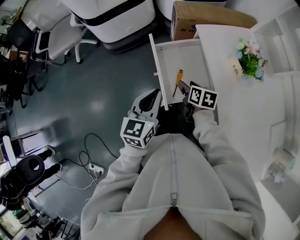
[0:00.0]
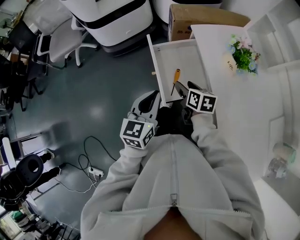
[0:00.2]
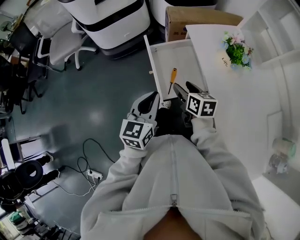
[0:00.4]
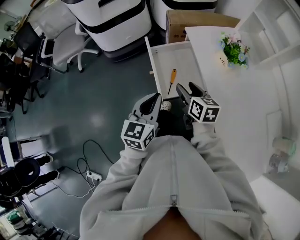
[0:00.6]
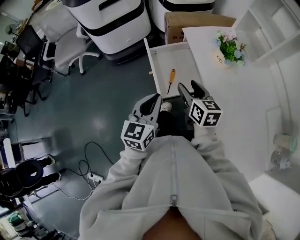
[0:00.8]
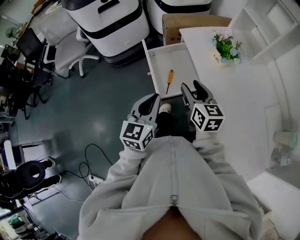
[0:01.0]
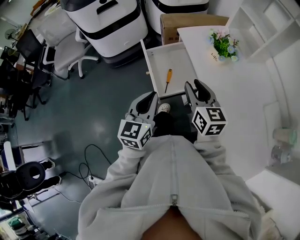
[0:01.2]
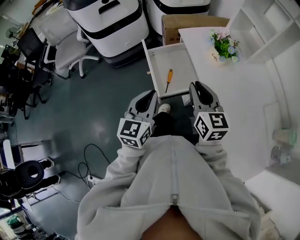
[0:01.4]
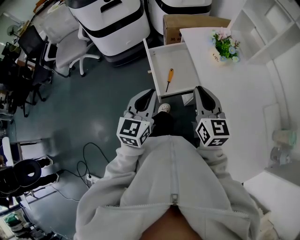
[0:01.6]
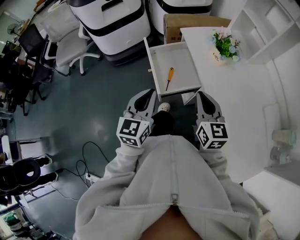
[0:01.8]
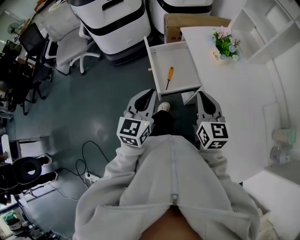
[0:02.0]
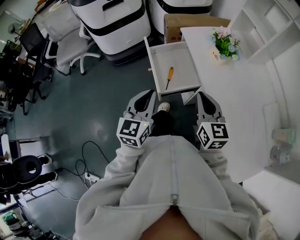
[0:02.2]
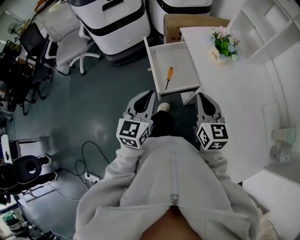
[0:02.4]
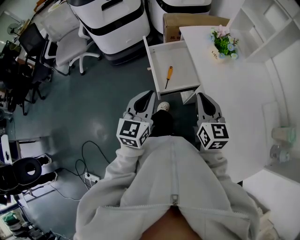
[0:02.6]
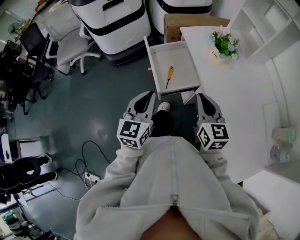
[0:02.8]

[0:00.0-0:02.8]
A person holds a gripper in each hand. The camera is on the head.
0:00.0 to 0:01.4: The right gripper heads upward and backward, covering approximately 25 cm, angles its fingers upward, by roughly 30 degrees, and closes. The left gripper goes approximately 10 cm backward and upward.
0:01.4 to 0:02.8: The right gripper is displaced backward by some 5 cm.

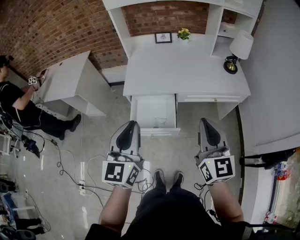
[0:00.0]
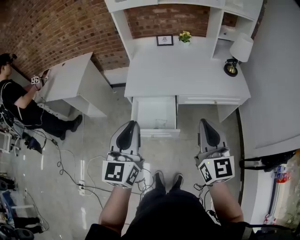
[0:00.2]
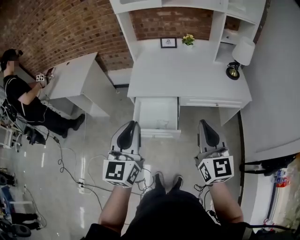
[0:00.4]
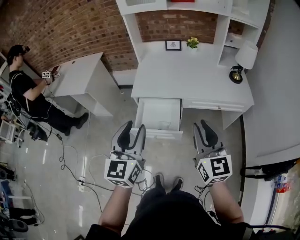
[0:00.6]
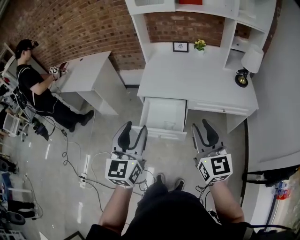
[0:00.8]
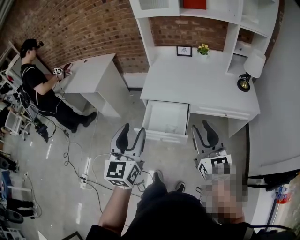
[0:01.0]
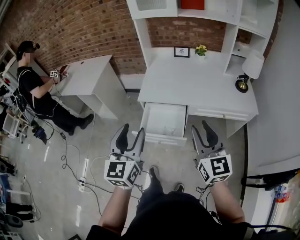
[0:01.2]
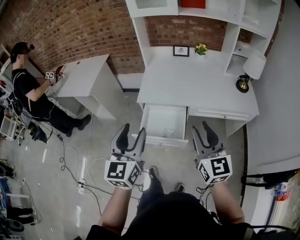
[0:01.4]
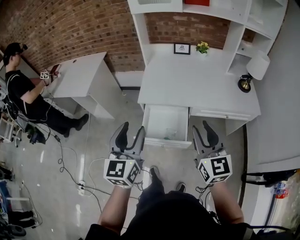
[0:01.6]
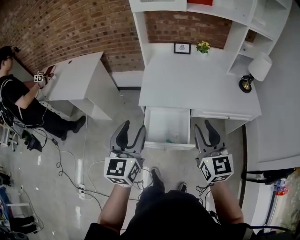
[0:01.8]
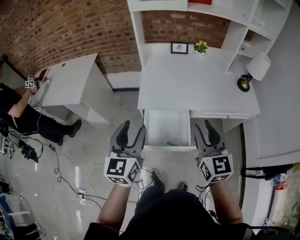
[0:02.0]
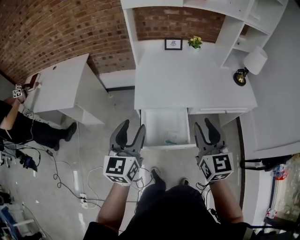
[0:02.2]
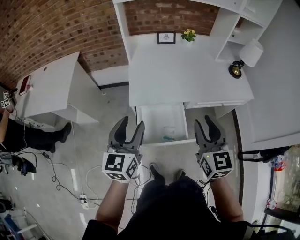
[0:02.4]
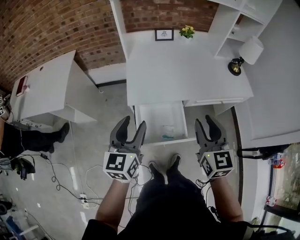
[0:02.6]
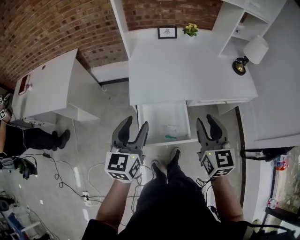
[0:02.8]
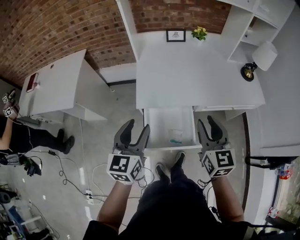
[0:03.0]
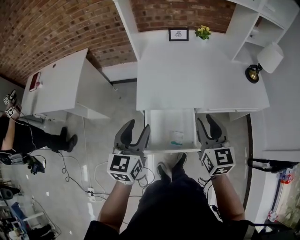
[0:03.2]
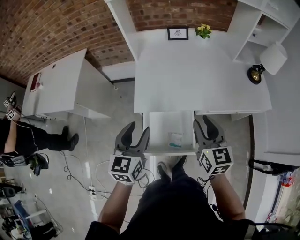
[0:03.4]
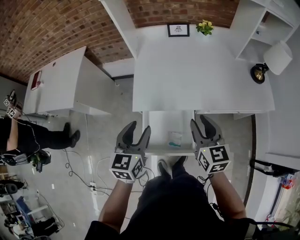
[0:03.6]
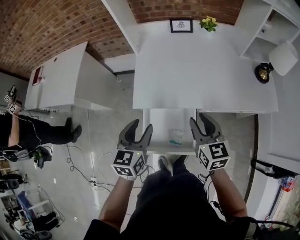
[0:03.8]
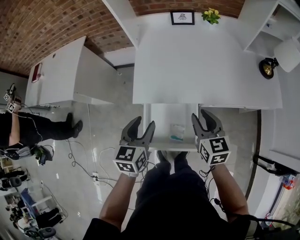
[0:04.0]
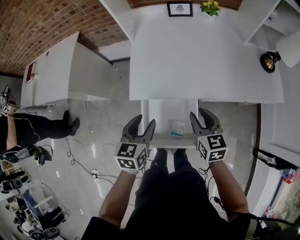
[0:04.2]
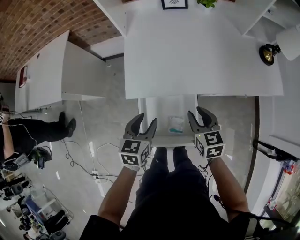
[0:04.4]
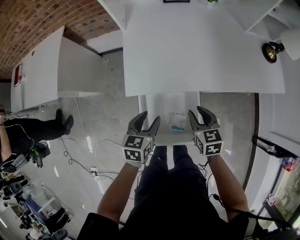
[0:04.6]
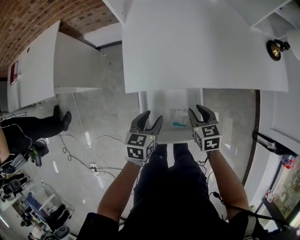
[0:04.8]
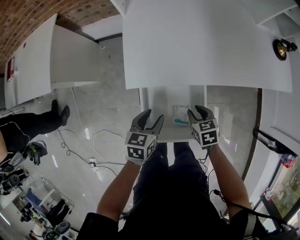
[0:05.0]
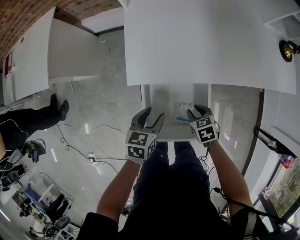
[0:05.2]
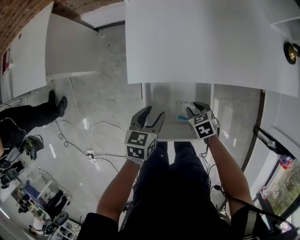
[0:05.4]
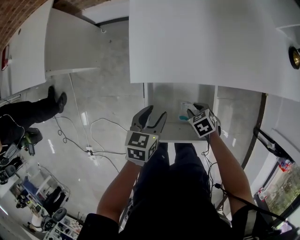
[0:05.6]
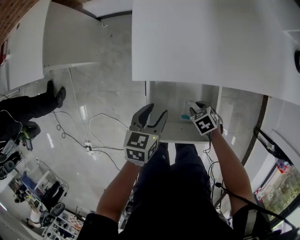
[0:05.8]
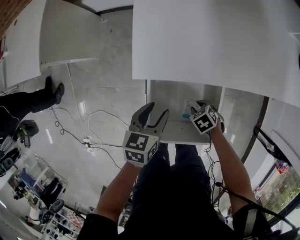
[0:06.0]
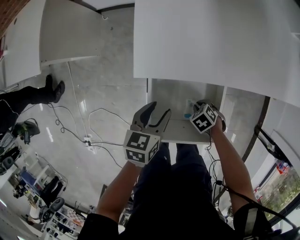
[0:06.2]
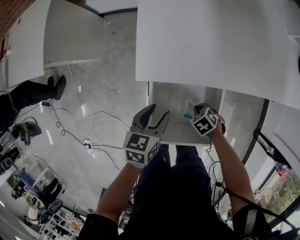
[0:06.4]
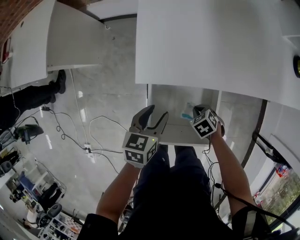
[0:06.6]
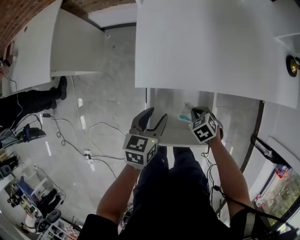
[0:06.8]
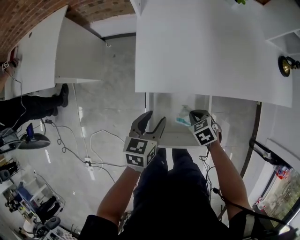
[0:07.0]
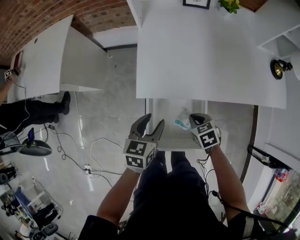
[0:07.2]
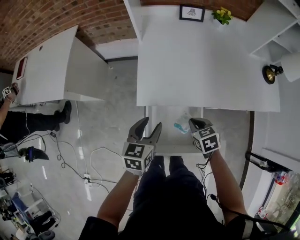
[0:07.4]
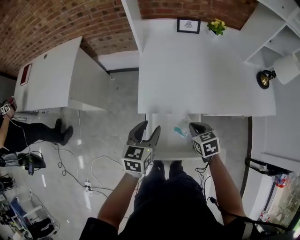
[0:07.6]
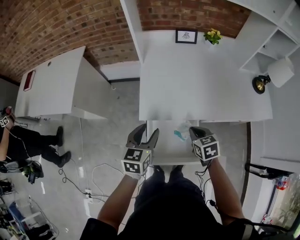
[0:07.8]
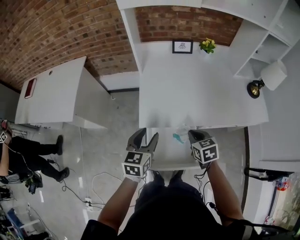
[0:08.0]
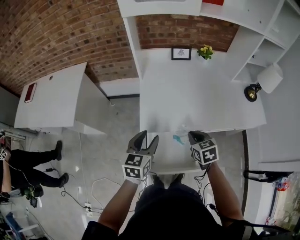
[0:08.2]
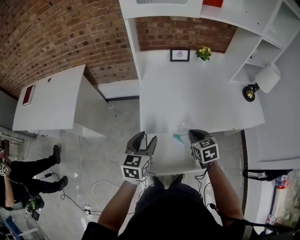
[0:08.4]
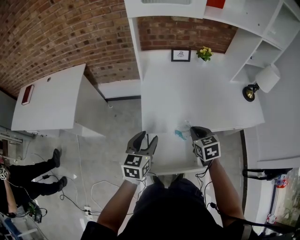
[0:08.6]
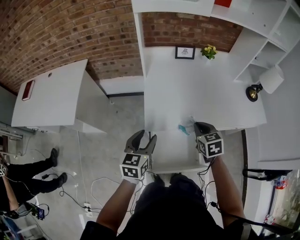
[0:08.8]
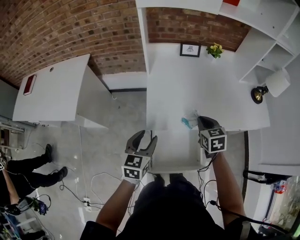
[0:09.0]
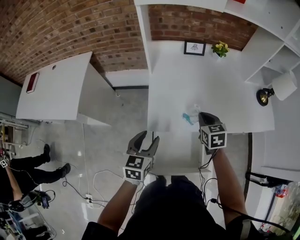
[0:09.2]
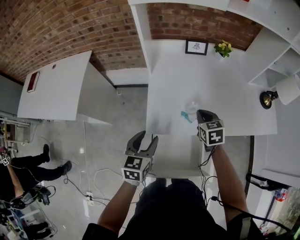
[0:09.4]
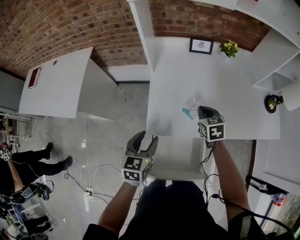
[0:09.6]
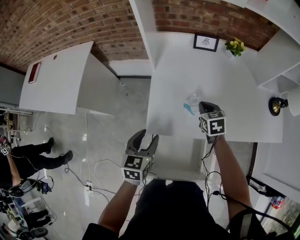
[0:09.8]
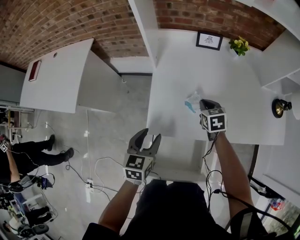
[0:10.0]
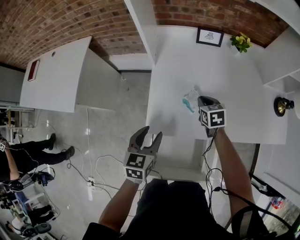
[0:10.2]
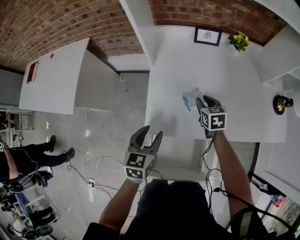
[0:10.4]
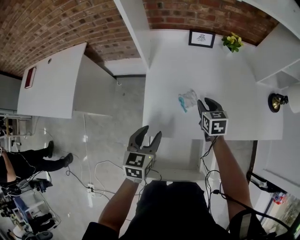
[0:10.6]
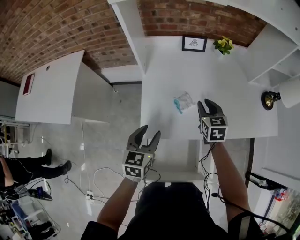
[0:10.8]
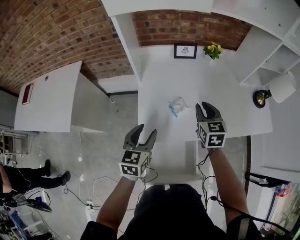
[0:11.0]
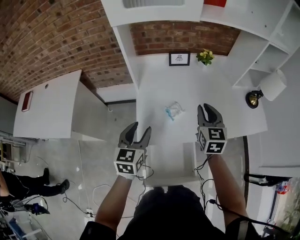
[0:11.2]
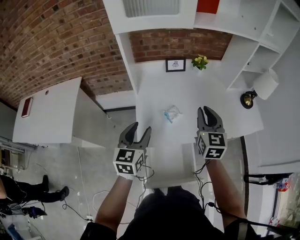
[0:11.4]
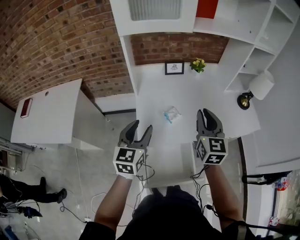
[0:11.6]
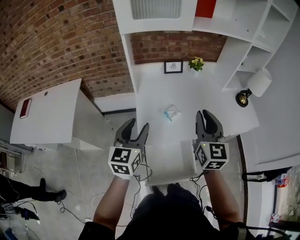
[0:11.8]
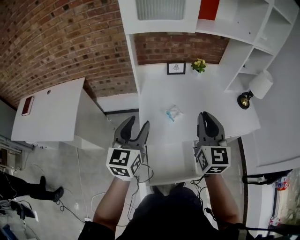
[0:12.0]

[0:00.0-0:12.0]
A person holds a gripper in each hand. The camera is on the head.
0:00.0 to 0:01.6: The left gripper goes approximately 10 cm to the left, and opens up; the right gripper goes about 10 cm to the left and forward, and opens up.
0:01.6 to 0:03.0: The grippers both shift forward, downward and to the left by some 15 cm.
0:03.0 to 0:04.4: The right gripper moves downward and forward, some 25 cm, and turns by approximately 20 degrees. The left gripper is displaced downward by some 20 cm, and turns by roughly 20 degrees.
0:04.4 to 0:06.0: The right gripper heads downward, covering approximately 30 cm, and angles its fingers downward, by roughly 40 degrees. Meanwhile the left gripper shifts approximately 15 cm downward.
0:06.0 to 0:07.6: Both grippers move upward, some 20 cm. The right gripper rotates about 40 degrees, and closes up.
0:07.6 to 0:09.0: The right gripper goes roughly 15 cm upward and forward. The left gripper heads to the left, covering some 5 cm.
0:09.0 to 0:10.4: The right gripper shifts approximately 20 cm forward and downward, and opens its fingers. The left gripper goes some 10 cm forward and downward.
0:10.4 to 0:12.0: The right gripper goes roughly 40 cm upward and backward, points its fingers some 40 degrees further upward, and closes. The left gripper is displaced upward by approximately 25 cm, and swivels about 30 degrees.

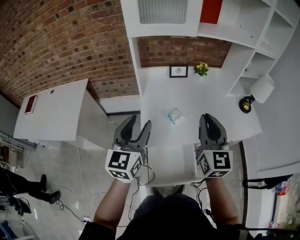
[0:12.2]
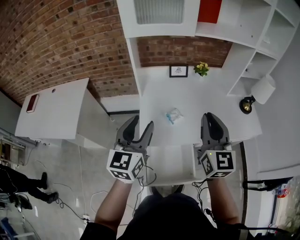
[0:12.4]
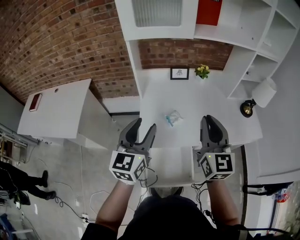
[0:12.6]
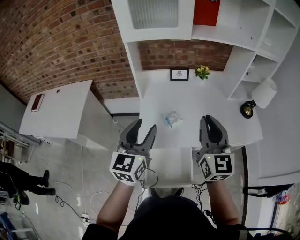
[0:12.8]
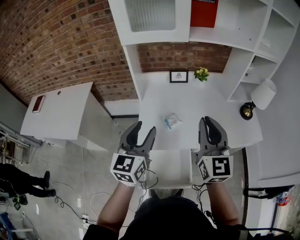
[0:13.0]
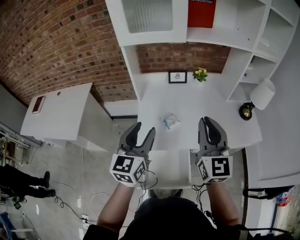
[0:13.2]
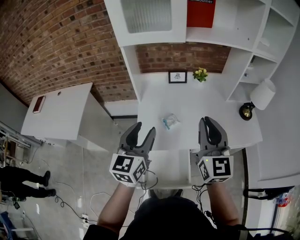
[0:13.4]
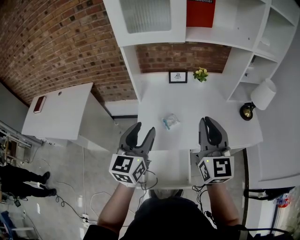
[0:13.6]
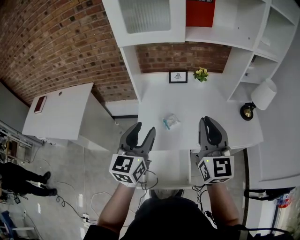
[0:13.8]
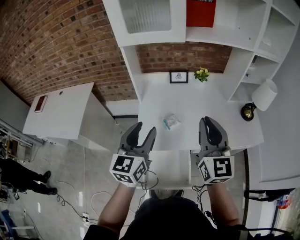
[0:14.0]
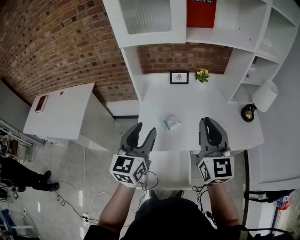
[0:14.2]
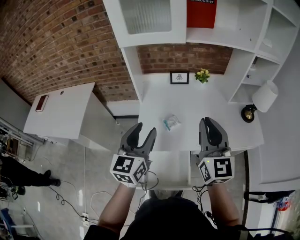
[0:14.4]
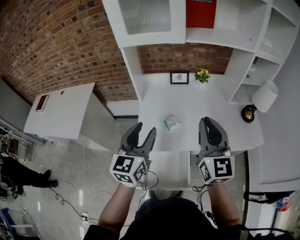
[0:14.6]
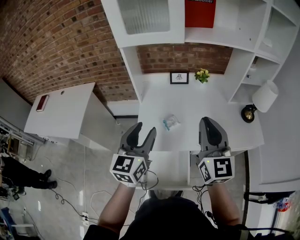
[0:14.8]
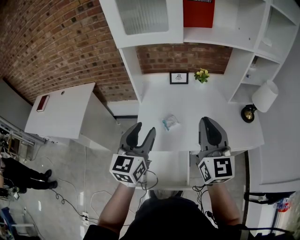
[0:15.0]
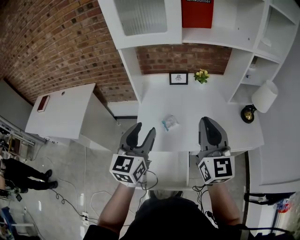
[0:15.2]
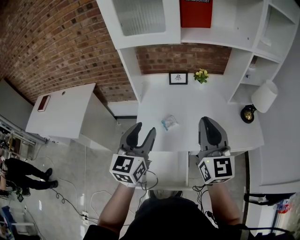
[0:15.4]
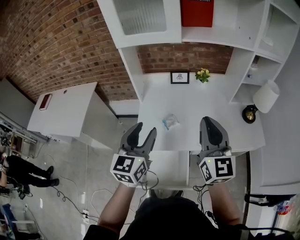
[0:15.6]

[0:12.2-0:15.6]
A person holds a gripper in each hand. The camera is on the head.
0:12.2 to 0:13.8: The grippers both shift to the right by about 10 cm.
0:13.8 to 0:15.6: There are only small adjustments of the grippers.

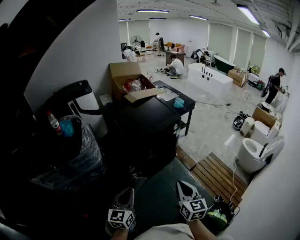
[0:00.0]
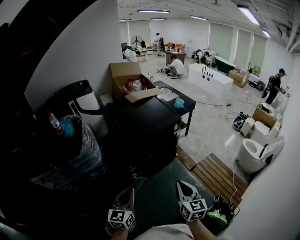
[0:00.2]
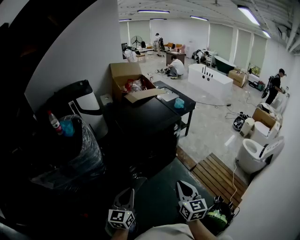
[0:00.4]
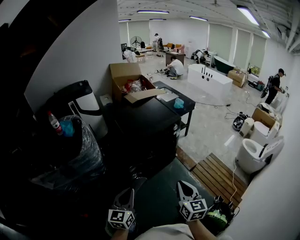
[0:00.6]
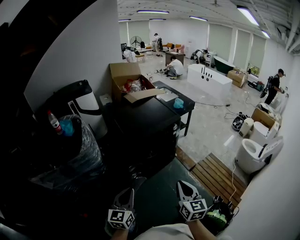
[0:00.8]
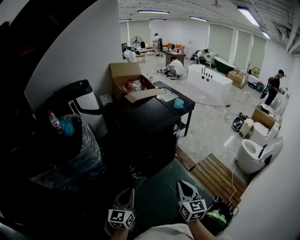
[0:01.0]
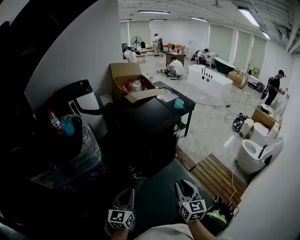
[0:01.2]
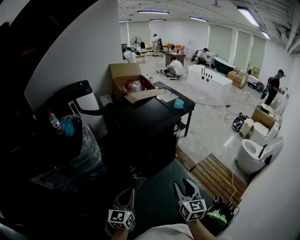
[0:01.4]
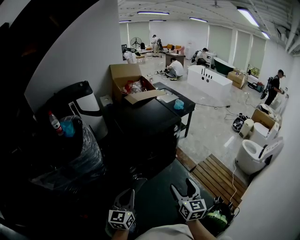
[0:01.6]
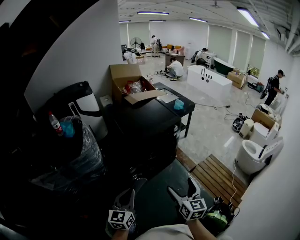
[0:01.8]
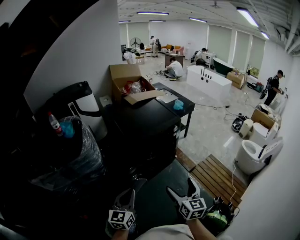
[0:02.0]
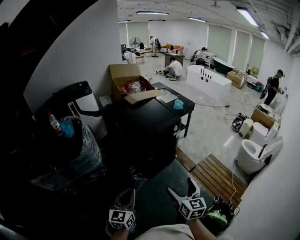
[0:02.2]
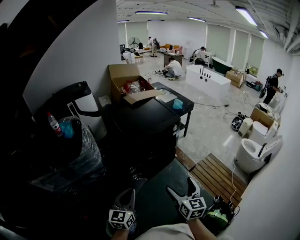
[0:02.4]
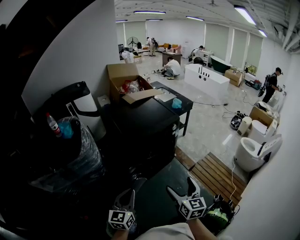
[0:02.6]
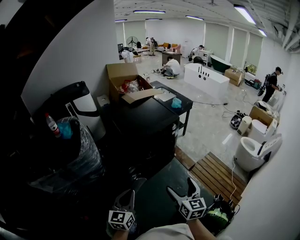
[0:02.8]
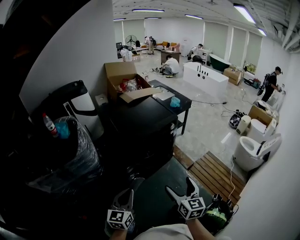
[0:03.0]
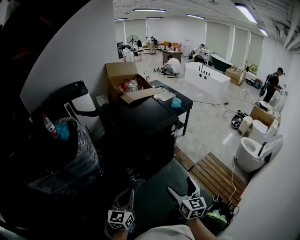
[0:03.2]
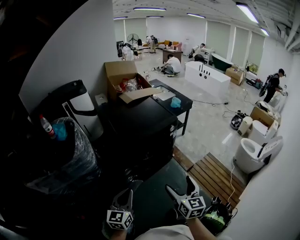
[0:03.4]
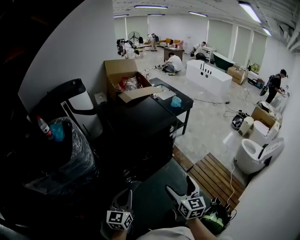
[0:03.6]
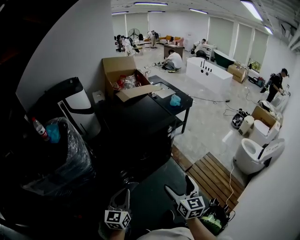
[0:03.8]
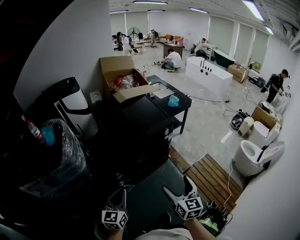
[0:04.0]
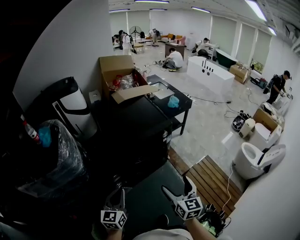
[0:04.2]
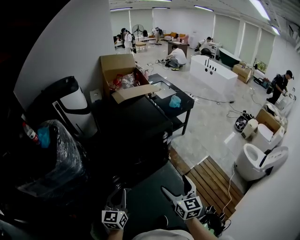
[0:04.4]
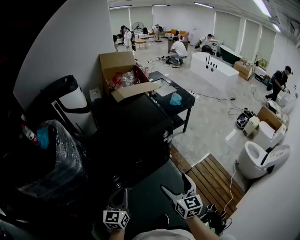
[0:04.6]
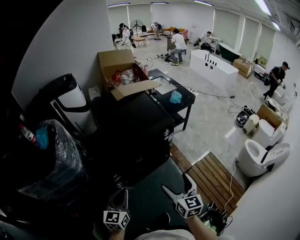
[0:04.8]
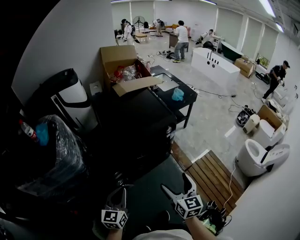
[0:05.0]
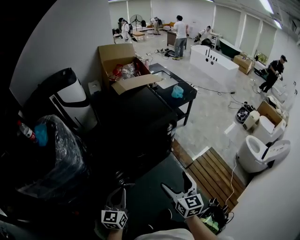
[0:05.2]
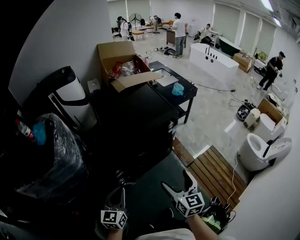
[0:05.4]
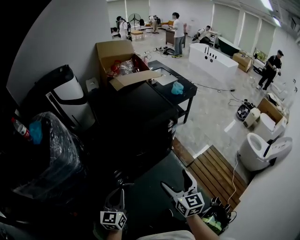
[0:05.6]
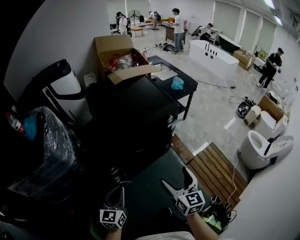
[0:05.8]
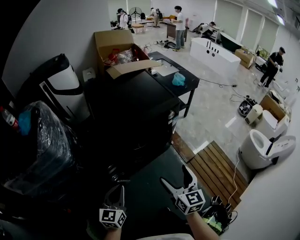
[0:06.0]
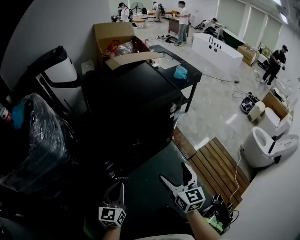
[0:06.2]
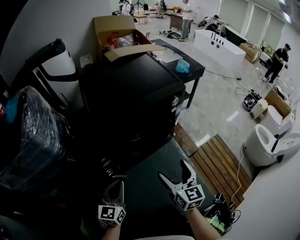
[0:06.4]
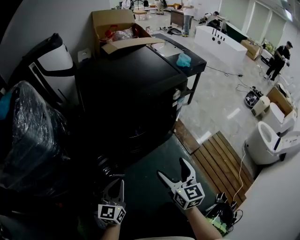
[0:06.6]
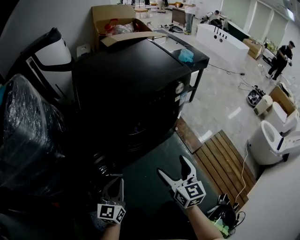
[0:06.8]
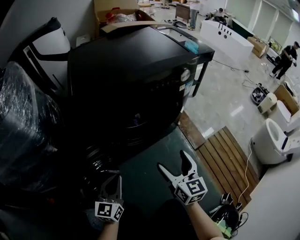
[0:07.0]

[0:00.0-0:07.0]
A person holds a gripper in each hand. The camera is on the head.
0:00.0 to 0:01.4: Both grippers stay put.
0:01.4 to 0:02.8: The right gripper opens.
0:02.8 to 0:04.2: The two grippers go roughly 20 cm forward and to the right.
0:04.2 to 0:05.6: The left gripper is displaced downward by roughly 10 cm, while the right gripper shifts some 10 cm downward and forward.
0:05.6 to 0:07.0: The grippers both shift downward by about 35 cm.
